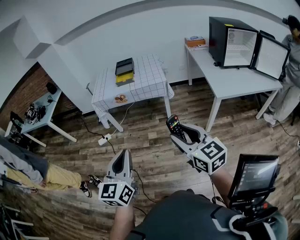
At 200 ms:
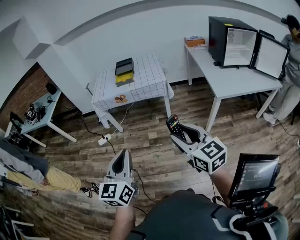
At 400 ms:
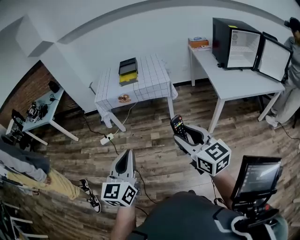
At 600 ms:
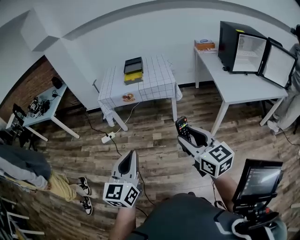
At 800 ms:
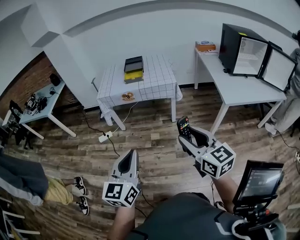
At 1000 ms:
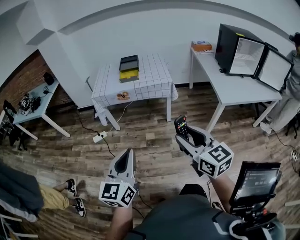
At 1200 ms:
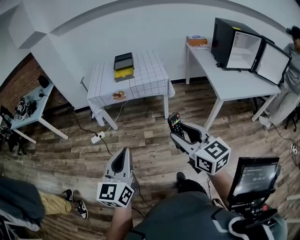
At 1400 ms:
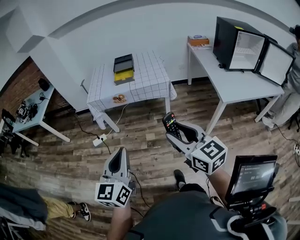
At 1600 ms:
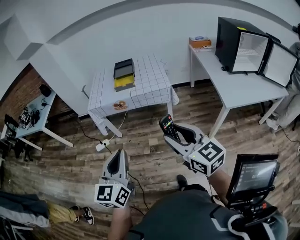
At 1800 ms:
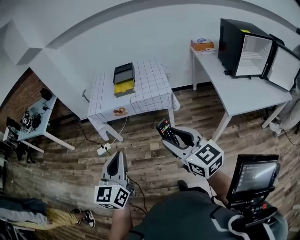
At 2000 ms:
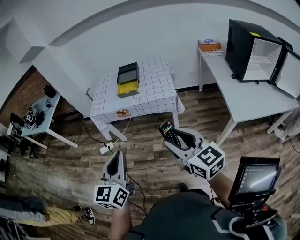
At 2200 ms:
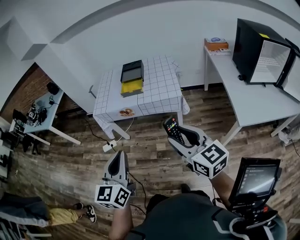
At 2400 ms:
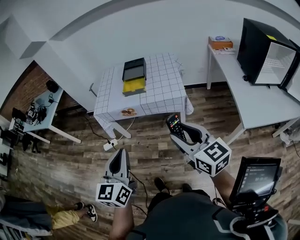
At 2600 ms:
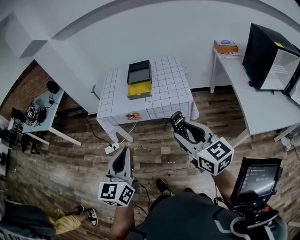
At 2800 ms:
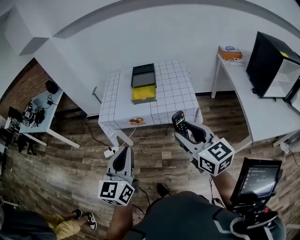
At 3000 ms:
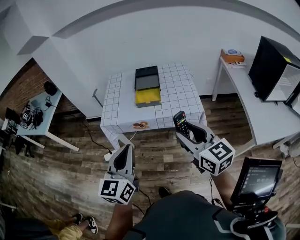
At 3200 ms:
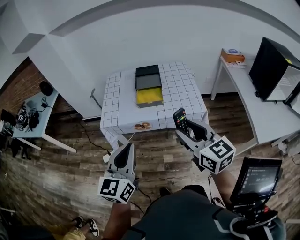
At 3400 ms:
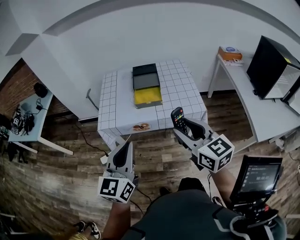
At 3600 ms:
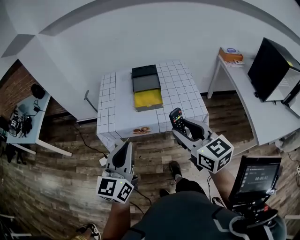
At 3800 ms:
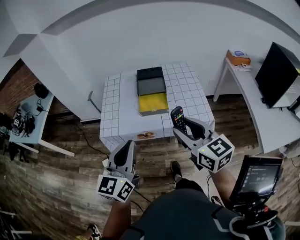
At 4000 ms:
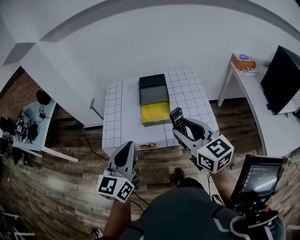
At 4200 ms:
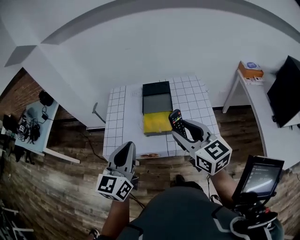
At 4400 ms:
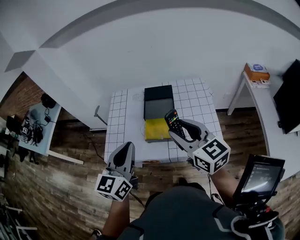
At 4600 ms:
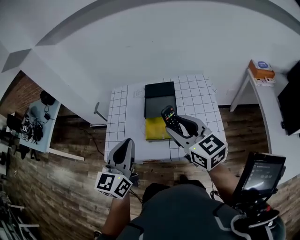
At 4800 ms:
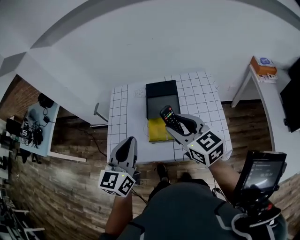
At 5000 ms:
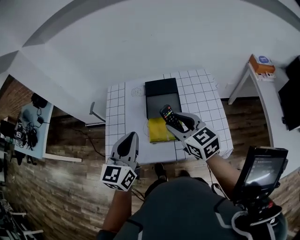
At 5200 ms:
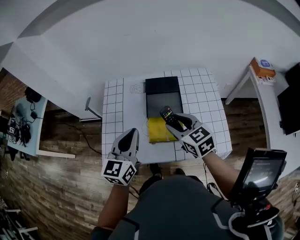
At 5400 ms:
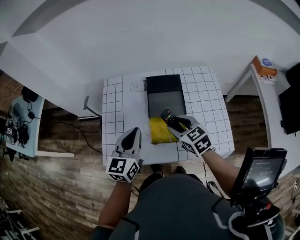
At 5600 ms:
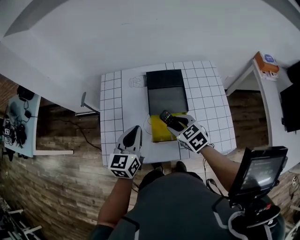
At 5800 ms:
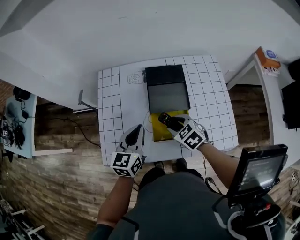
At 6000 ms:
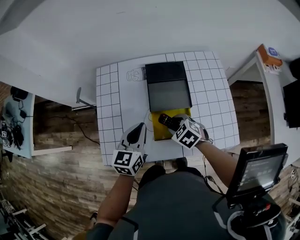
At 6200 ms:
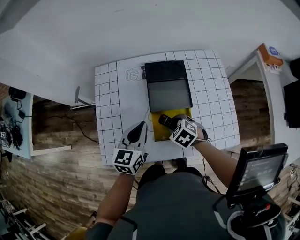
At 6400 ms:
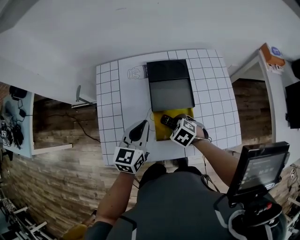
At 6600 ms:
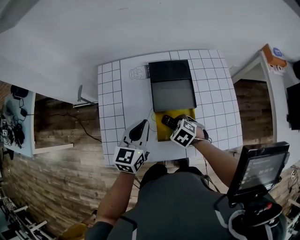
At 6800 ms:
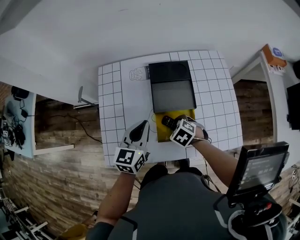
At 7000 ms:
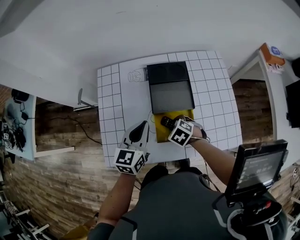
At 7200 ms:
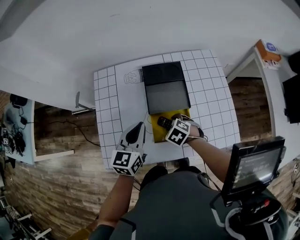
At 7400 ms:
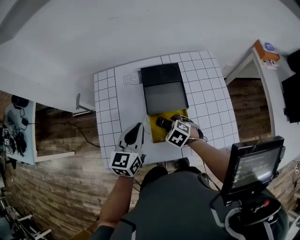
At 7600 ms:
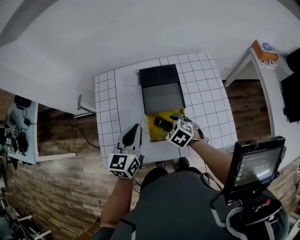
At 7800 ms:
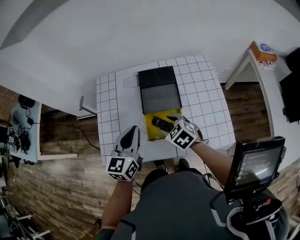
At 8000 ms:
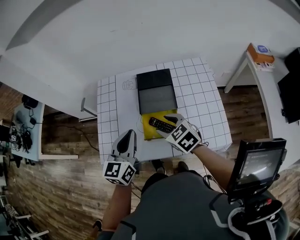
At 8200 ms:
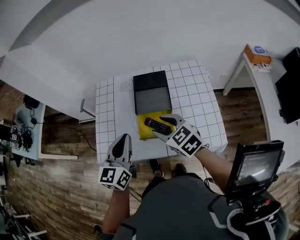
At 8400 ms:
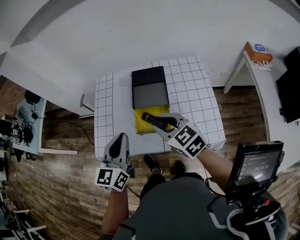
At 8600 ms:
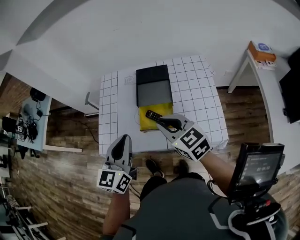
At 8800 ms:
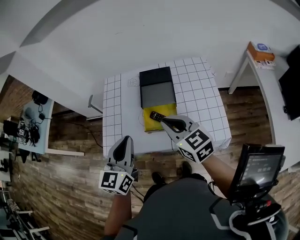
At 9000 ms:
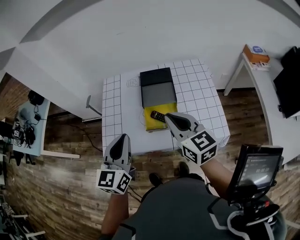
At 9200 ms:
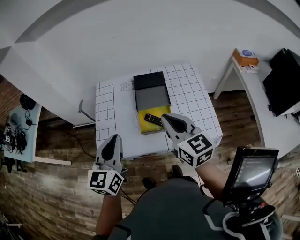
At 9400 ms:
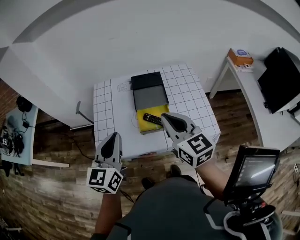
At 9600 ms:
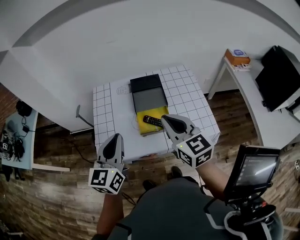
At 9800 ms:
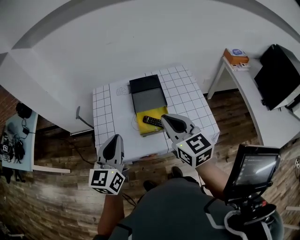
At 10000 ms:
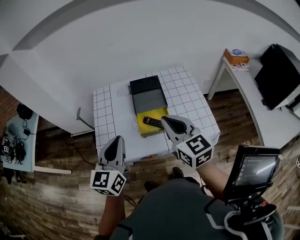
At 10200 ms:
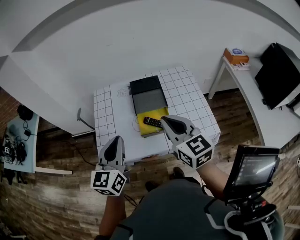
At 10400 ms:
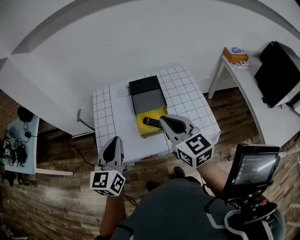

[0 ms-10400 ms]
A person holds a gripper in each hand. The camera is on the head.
0 ms to 1400 ms: The right gripper shifts roughly 10 cm forward and to the left. The left gripper heads forward, covering roughly 10 cm.
1400 ms to 3000 ms: Both grippers travel together forward, some 35 cm.
3000 ms to 4400 ms: The grippers both shift forward by some 30 cm.
4400 ms to 6000 ms: The right gripper travels downward and forward by some 35 cm, and points its fingers roughly 50 degrees further downward; the left gripper is displaced forward and downward by roughly 30 cm.
6000 ms to 7400 ms: The grippers stay close to where they were, moving slightly.
7400 ms to 9000 ms: The left gripper heads backward and upward, covering roughly 20 cm. Meanwhile the right gripper is displaced upward by about 30 cm, tips its fingers upward by some 60 degrees, and closes its fingers.
9000 ms to 10400 ms: The grippers make only small movements.

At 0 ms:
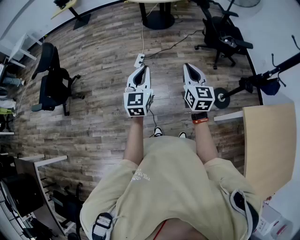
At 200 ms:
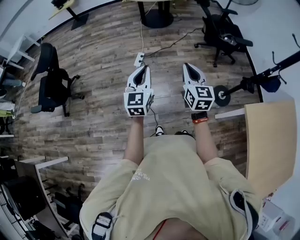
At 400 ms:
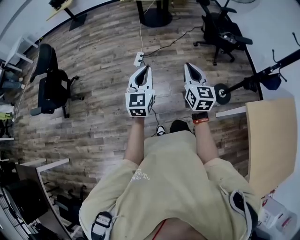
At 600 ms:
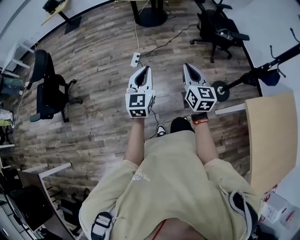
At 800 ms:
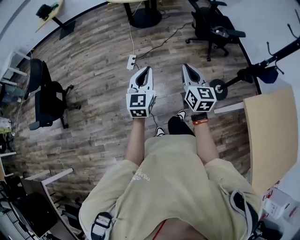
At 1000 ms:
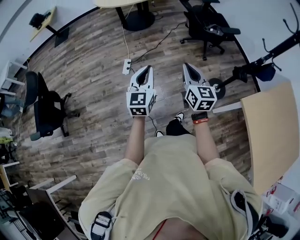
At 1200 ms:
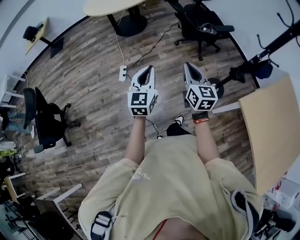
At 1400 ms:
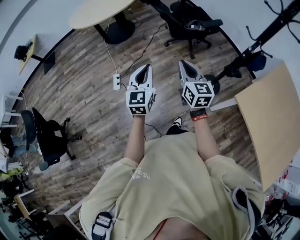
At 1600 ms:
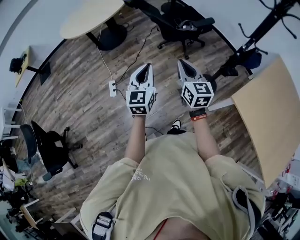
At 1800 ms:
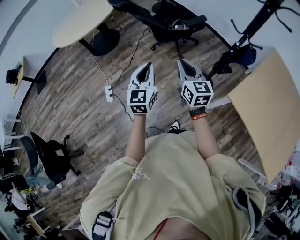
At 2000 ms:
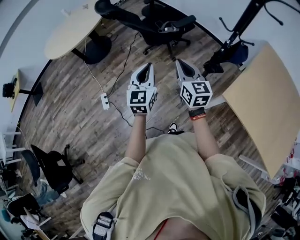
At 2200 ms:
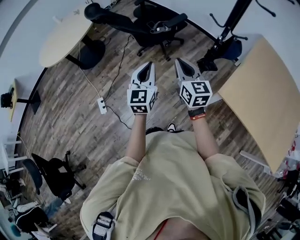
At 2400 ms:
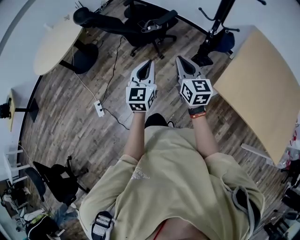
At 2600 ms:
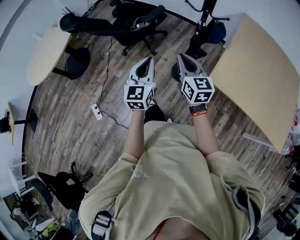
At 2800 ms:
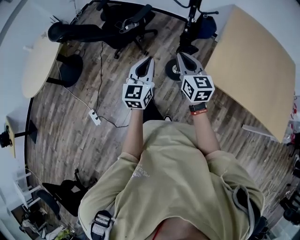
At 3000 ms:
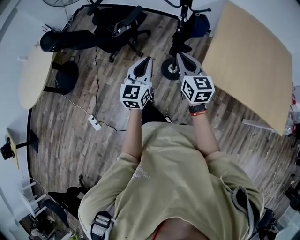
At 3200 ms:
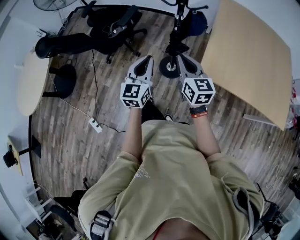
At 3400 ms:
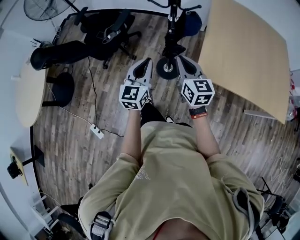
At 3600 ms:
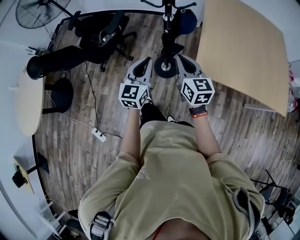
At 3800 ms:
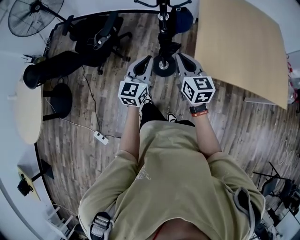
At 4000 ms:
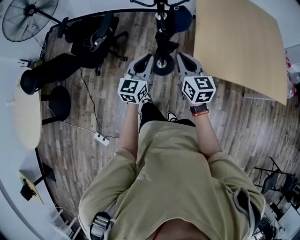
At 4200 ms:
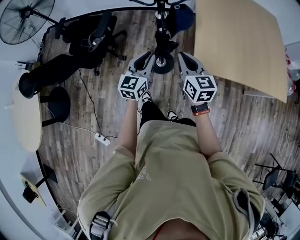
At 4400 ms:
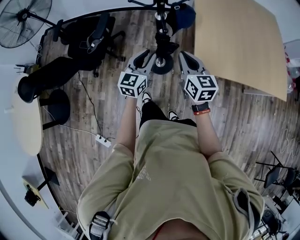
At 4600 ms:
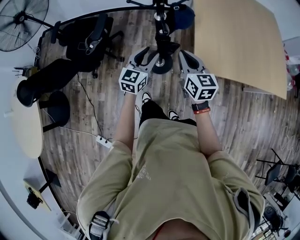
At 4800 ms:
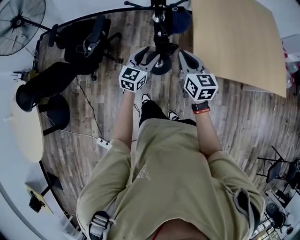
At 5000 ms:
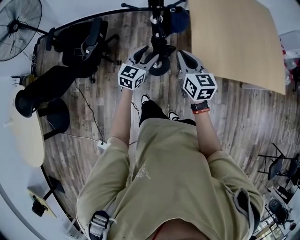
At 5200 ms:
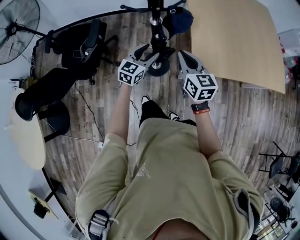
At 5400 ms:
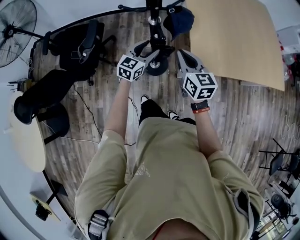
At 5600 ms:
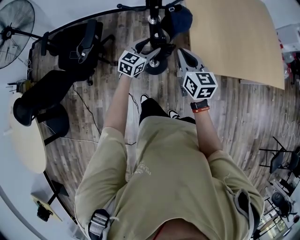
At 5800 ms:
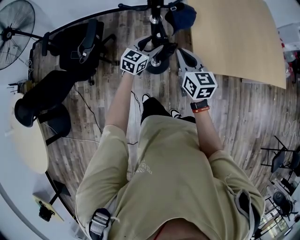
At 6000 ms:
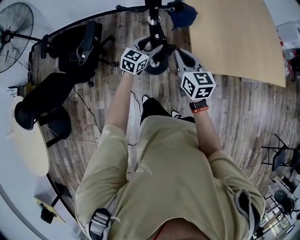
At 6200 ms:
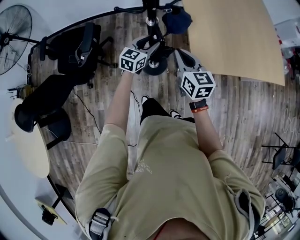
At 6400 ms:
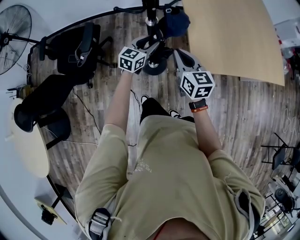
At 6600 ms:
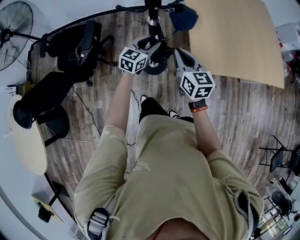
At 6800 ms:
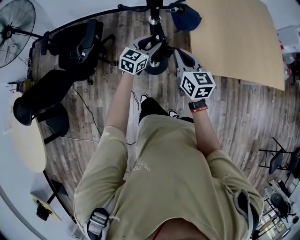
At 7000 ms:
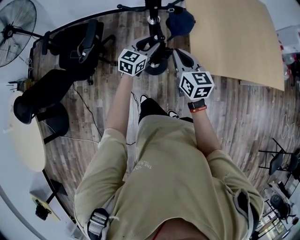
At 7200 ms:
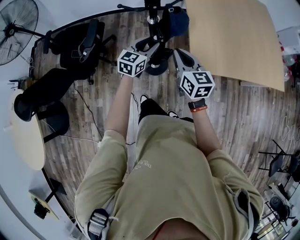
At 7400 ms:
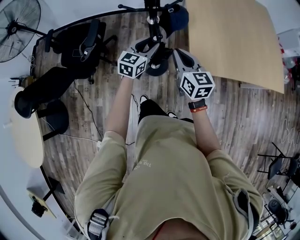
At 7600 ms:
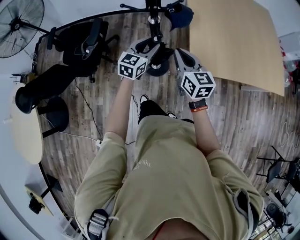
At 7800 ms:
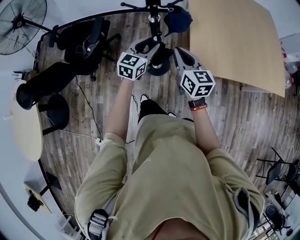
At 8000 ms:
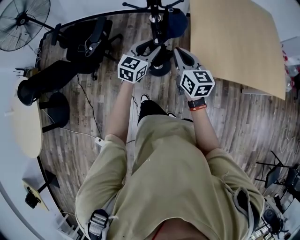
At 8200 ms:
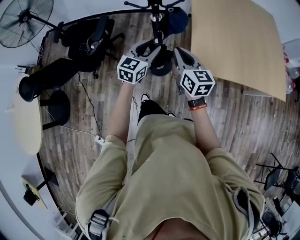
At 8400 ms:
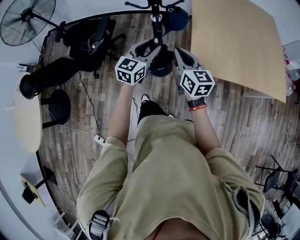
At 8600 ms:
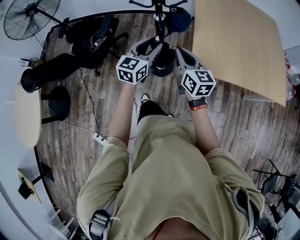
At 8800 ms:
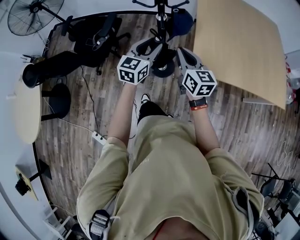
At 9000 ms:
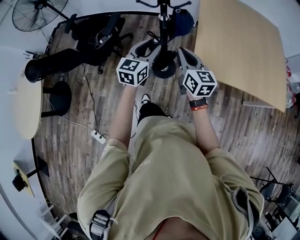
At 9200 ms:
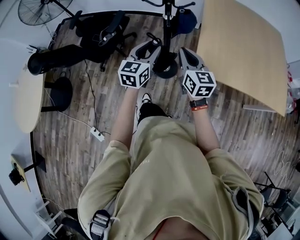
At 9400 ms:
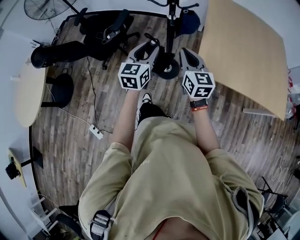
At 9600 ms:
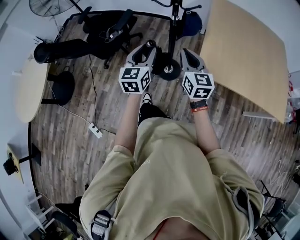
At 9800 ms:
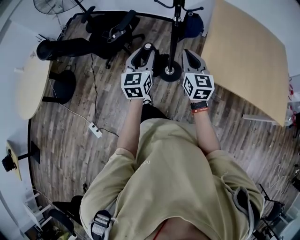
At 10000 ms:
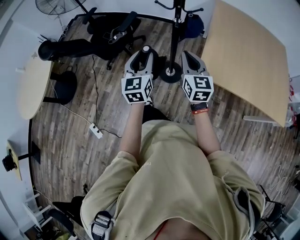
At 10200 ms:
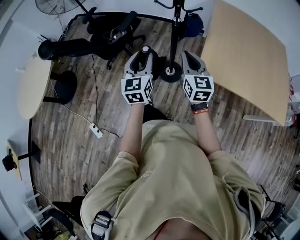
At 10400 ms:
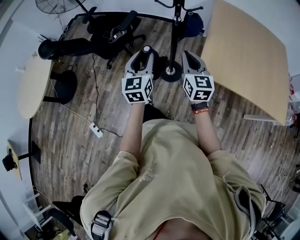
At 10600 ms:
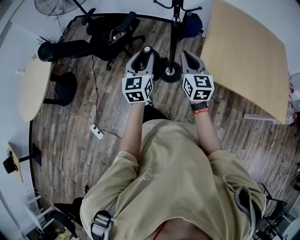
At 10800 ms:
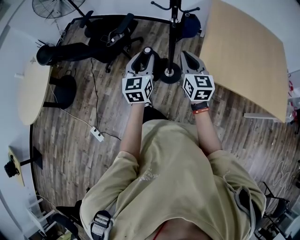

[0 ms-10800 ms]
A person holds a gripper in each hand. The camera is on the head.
0 ms to 1600 ms: The right gripper travels to the right and forward by about 30 cm, and rotates approximately 20 degrees. Meanwhile the left gripper shifts roughly 35 cm forward and to the right, and rotates about 30 degrees.
1600 ms to 3000 ms: The left gripper shifts by approximately 35 cm, and turns by some 40 degrees. Meanwhile the right gripper changes place by approximately 30 cm, and turns by about 30 degrees.
3000 ms to 4600 ms: The left gripper moves some 20 cm, changes its angle by about 30 degrees, and opens. The right gripper moves some 15 cm, and turns by roughly 20 degrees.
4600 ms to 6200 ms: The left gripper is displaced forward and downward by approximately 15 cm; the right gripper moves roughly 5 cm.
6200 ms to 7800 ms: The left gripper moves upward and backward, roughly 10 cm. The right gripper shifts by about 5 cm.
7800 ms to 9200 ms: The right gripper shifts roughly 5 cm backward. The left gripper moves backward and upward, some 15 cm.
9200 ms to 10800 ms: The right gripper changes place by roughly 5 cm. Meanwhile the left gripper heads backward and to the left, covering roughly 10 cm, and turns by some 20 degrees.

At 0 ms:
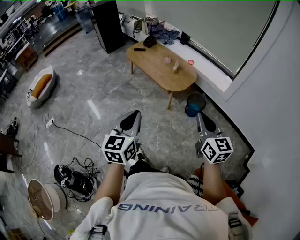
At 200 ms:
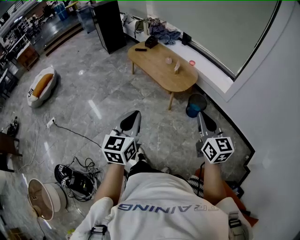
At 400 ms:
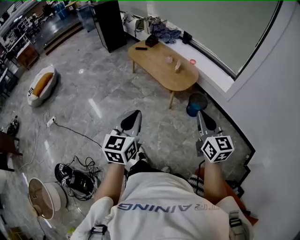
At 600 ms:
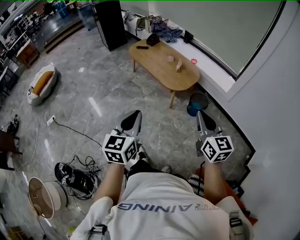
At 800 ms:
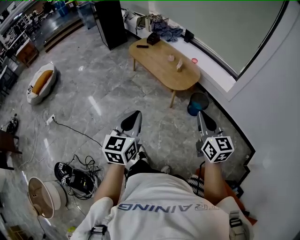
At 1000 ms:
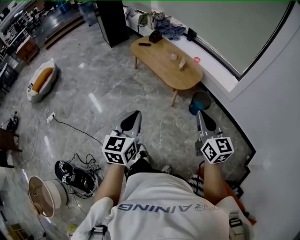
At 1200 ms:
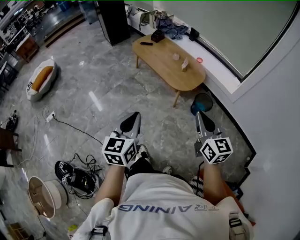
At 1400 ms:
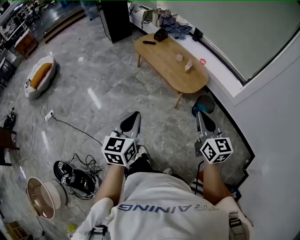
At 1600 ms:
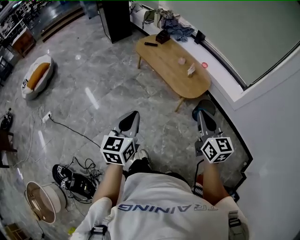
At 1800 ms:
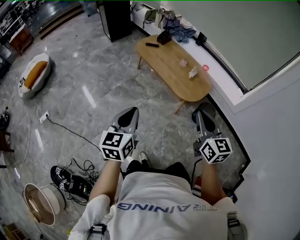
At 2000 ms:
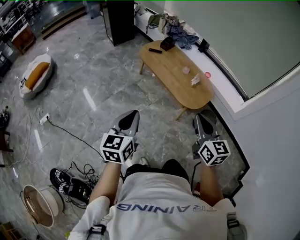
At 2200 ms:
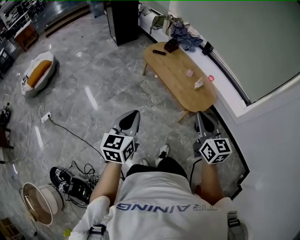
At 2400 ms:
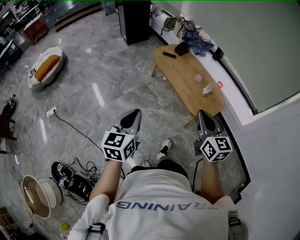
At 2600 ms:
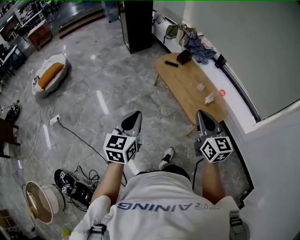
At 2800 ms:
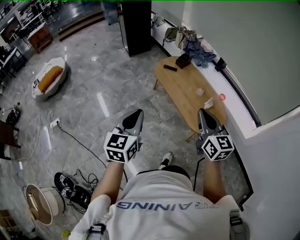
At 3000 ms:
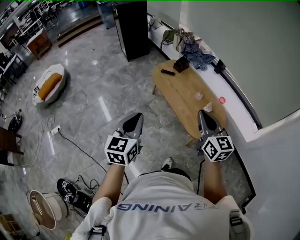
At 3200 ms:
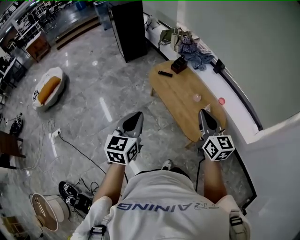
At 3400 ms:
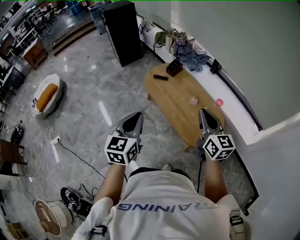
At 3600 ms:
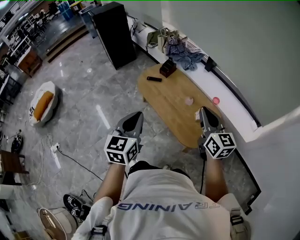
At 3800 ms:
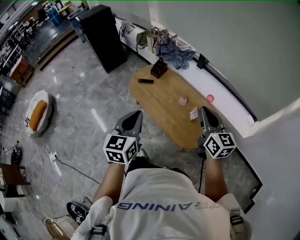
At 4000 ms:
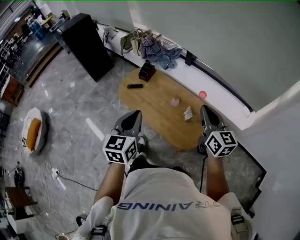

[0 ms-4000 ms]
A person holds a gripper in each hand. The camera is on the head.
0 ms to 1400 ms: Both grippers move to the left and forward, roughly 15 cm.
1400 ms to 2600 ms: Both grippers travel together forward and to the left, approximately 30 cm.
2600 ms to 4000 ms: The two grippers go approximately 40 cm forward and to the right. The right gripper swivels some 20 degrees.
